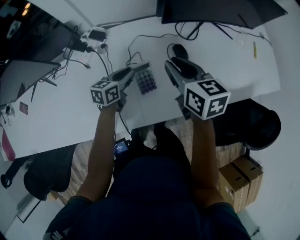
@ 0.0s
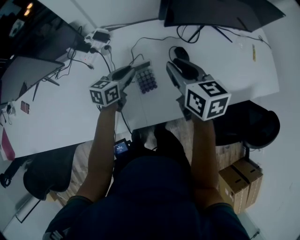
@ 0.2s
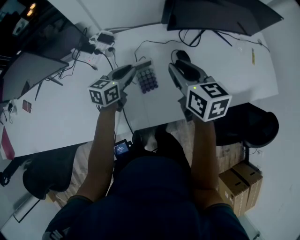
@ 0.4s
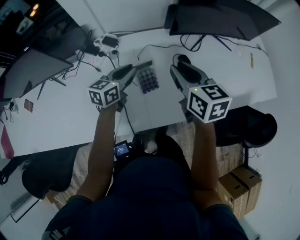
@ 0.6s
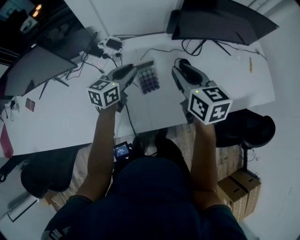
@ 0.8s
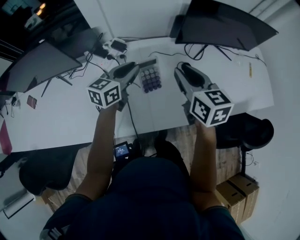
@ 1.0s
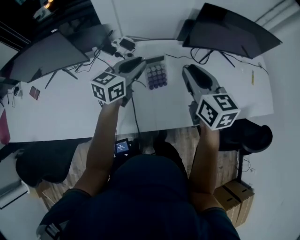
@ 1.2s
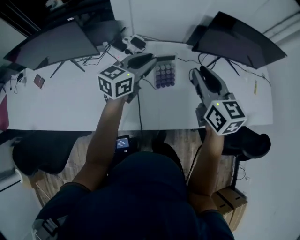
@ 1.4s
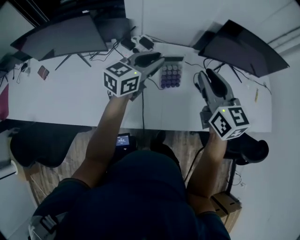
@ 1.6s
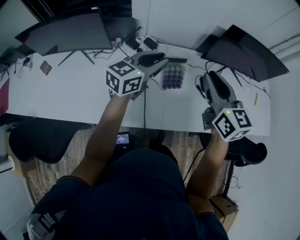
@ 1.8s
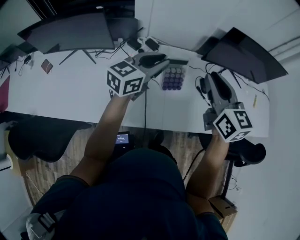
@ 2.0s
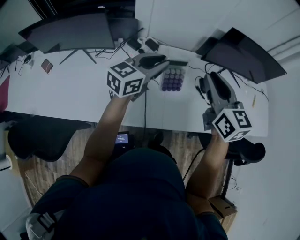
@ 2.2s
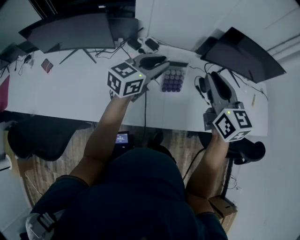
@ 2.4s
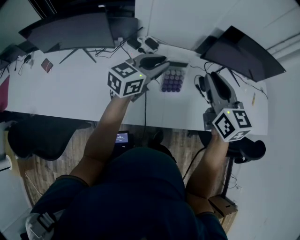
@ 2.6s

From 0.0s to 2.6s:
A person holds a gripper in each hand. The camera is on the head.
From 0.0s to 1.2s: The right gripper moves upward, approximately 10 cm, while the left gripper shifts some 20 cm upward, and changes its angle by approximately 20 degrees.
From 1.2s to 2.6s: The grippers both shift upward and backward by approximately 10 cm.

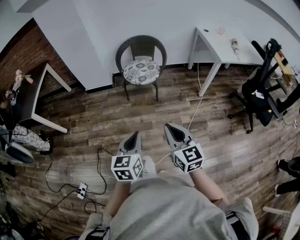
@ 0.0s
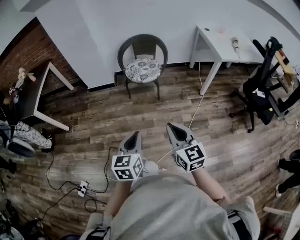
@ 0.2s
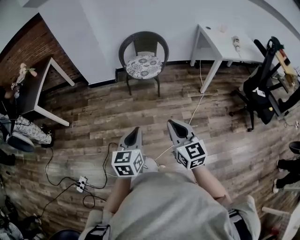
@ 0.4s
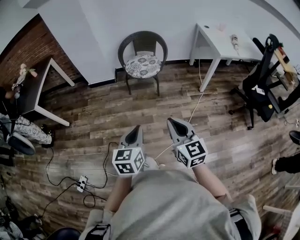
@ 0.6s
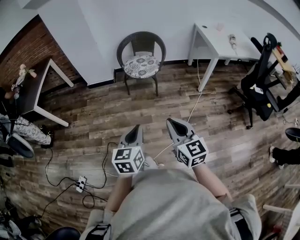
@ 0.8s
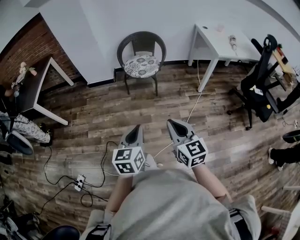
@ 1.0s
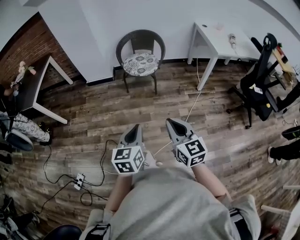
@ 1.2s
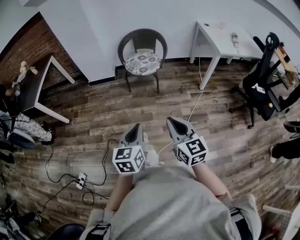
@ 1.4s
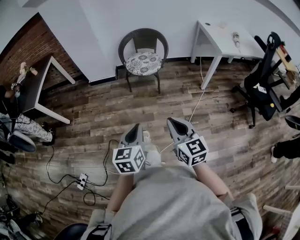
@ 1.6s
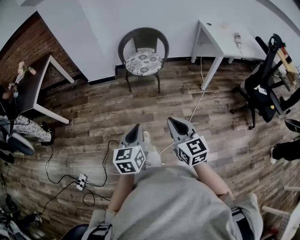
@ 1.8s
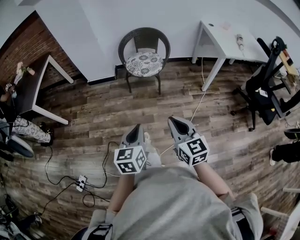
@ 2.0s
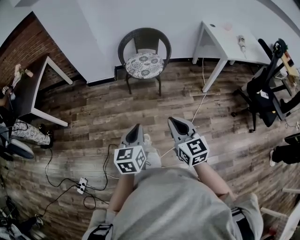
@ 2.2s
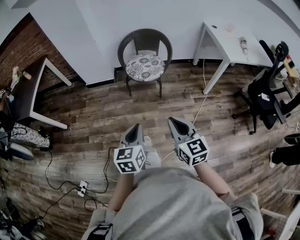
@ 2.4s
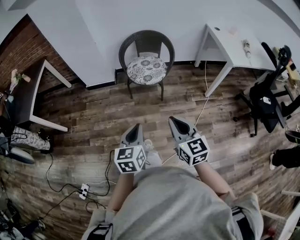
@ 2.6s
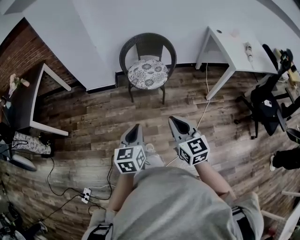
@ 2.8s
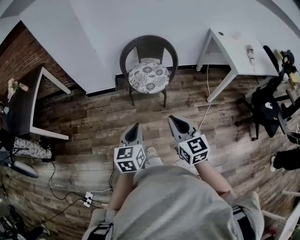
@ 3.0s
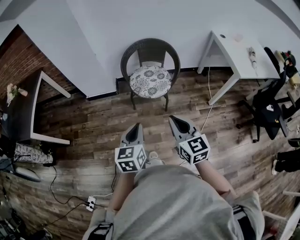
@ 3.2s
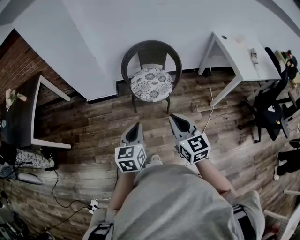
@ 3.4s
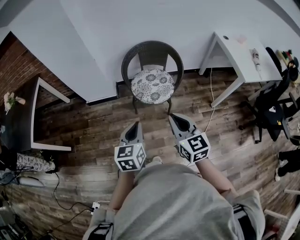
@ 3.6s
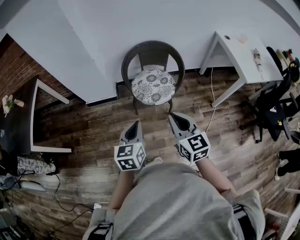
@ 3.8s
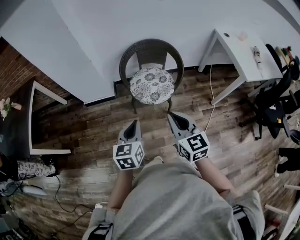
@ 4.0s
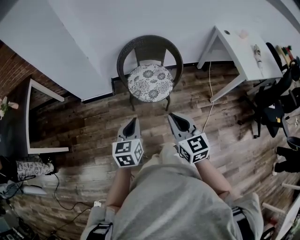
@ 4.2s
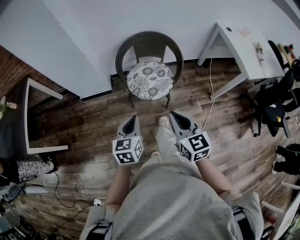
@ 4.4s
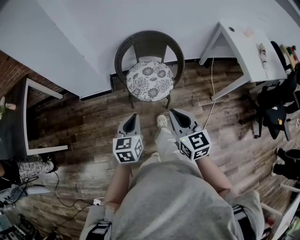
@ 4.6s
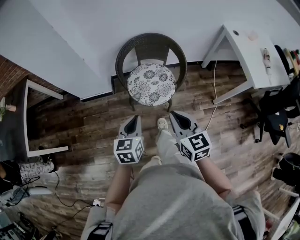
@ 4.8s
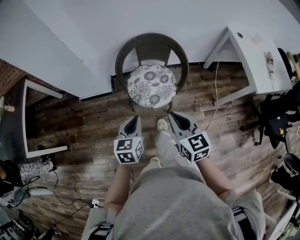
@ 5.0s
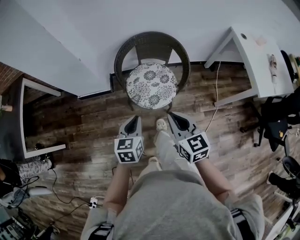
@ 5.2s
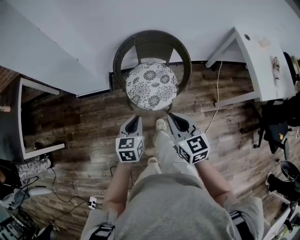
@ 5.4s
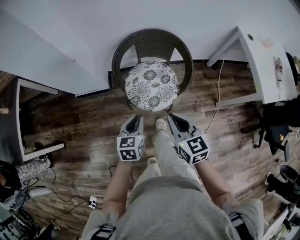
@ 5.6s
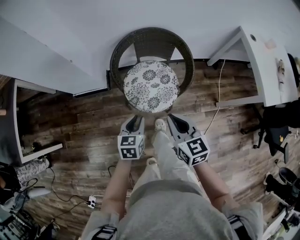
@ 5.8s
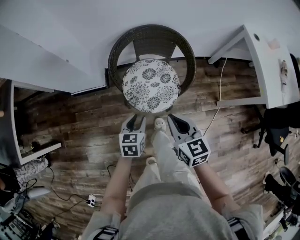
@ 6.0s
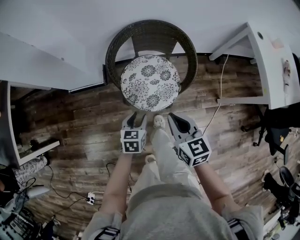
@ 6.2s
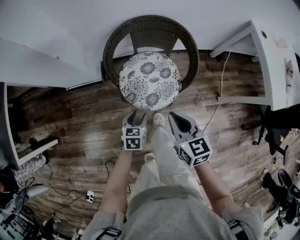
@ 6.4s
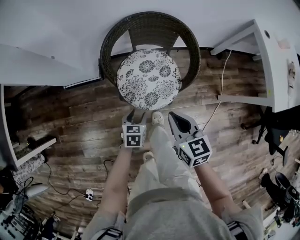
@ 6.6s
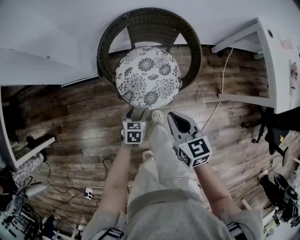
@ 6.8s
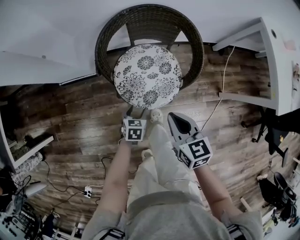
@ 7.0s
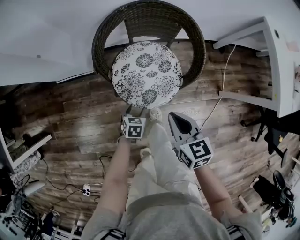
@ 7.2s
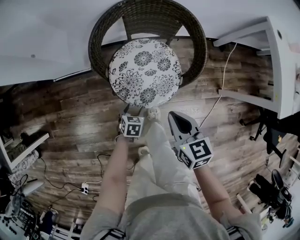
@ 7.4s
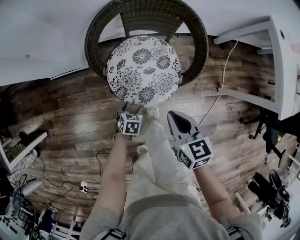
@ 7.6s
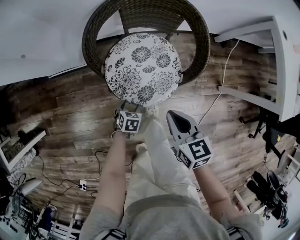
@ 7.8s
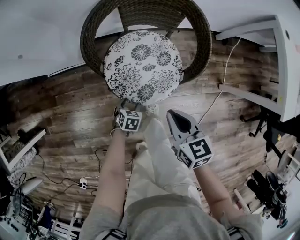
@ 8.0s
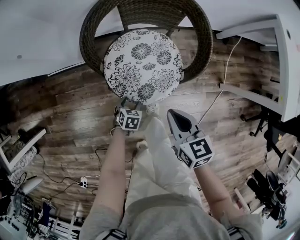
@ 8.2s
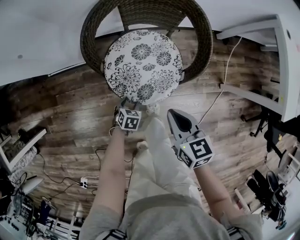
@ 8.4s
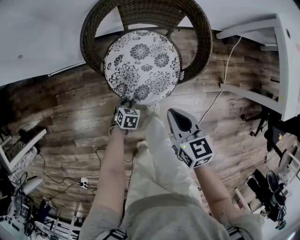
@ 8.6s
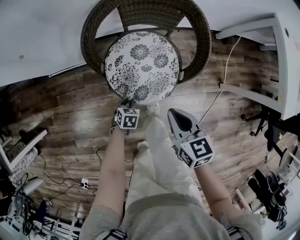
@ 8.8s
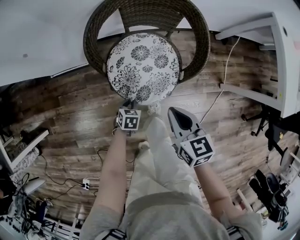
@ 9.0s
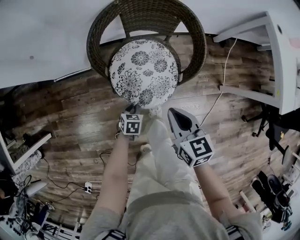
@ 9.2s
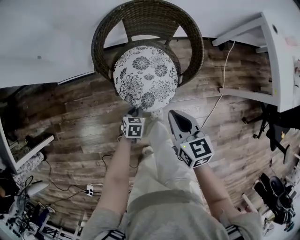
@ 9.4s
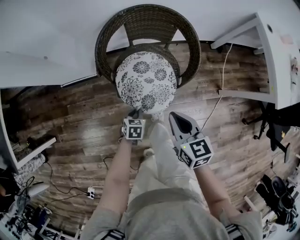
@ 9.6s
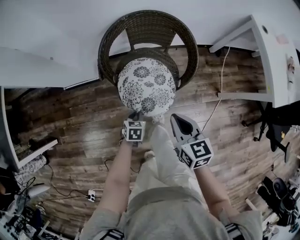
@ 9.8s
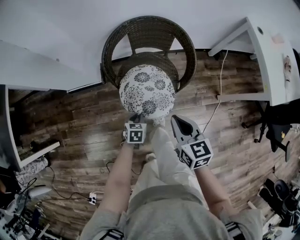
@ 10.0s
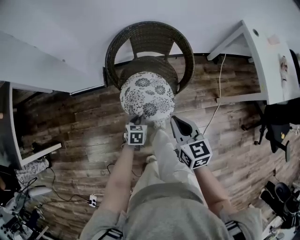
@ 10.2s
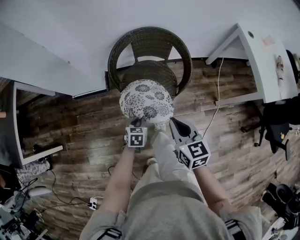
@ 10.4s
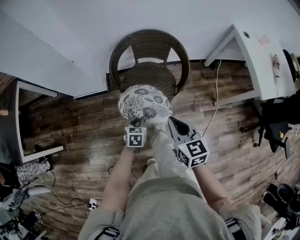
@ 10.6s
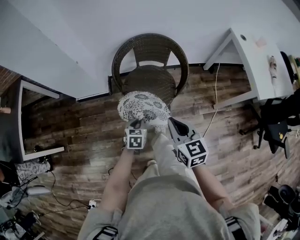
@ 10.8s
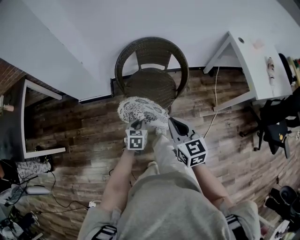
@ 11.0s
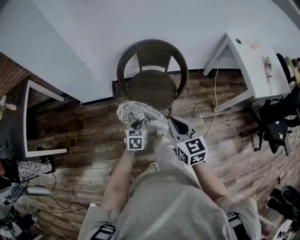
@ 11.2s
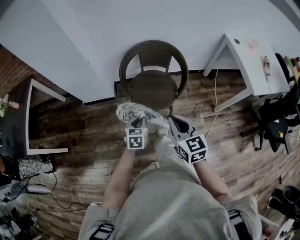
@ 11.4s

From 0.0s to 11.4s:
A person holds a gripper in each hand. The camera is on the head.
From 0.0s to 1.4s: Both grippers travel together backward, approximately 5 cm.
From 1.4s to 2.8s: The grippers both shift forward by approximately 25 cm.
From 2.8s to 4.2s: The two grippers go roughly 25 cm forward.
From 4.2s to 5.6s: Both grippers travel together forward and downward, roughly 25 cm.
From 5.6s to 7.2s: The right gripper shifts some 15 cm downward and forward; the left gripper travels downward by roughly 30 cm, turns by roughly 30 degrees, and opens its fingers.
From 7.2s to 8.6s: The left gripper is displaced downward by about 10 cm, and closes. Meanwhile the right gripper travels downward by some 5 cm.
From 8.6s to 10.0s: The right gripper travels upward and backward by about 15 cm. Meanwhile the left gripper shifts about 15 cm upward.
From 10.0s to 11.4s: The left gripper goes approximately 25 cm upward and backward, while the right gripper travels backward and upward by approximately 20 cm.

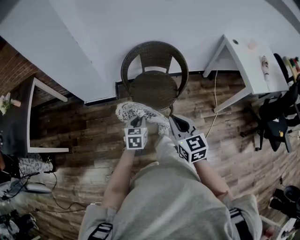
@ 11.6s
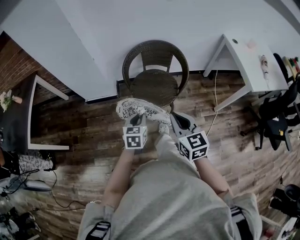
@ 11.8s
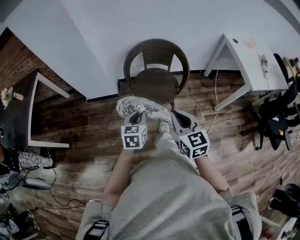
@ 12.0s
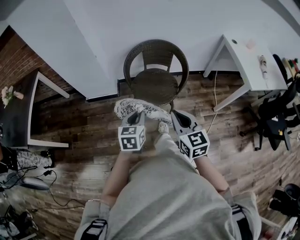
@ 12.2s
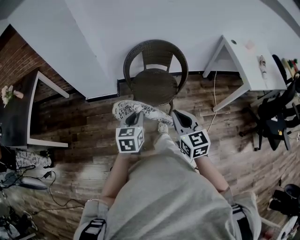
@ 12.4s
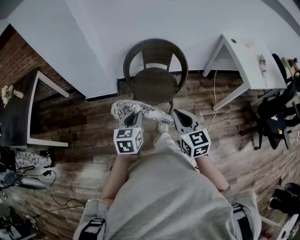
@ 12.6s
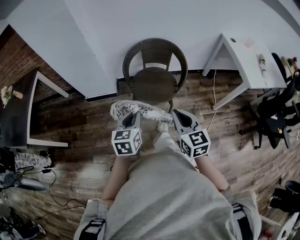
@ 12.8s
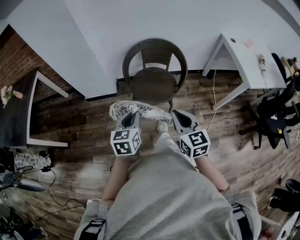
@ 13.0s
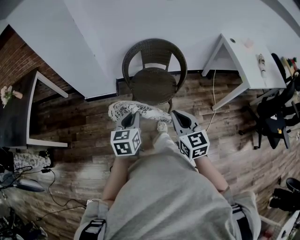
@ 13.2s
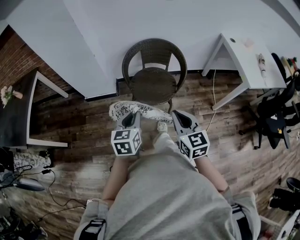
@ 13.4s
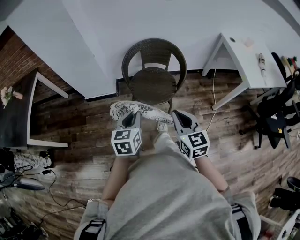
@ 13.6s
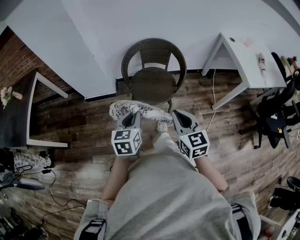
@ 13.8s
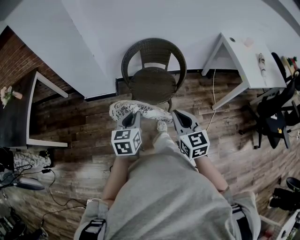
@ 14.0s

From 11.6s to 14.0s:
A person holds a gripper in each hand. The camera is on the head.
From 11.6s to 12.8s: The right gripper travels backward by some 5 cm. The left gripper heads upward and backward, covering roughly 15 cm.
From 12.8s to 14.0s: Both grippers stay put.

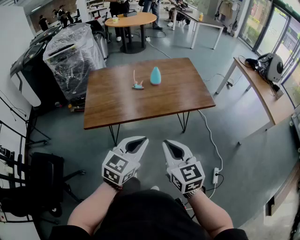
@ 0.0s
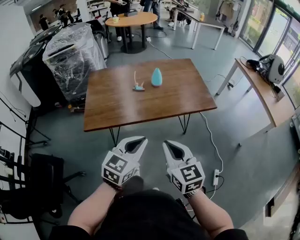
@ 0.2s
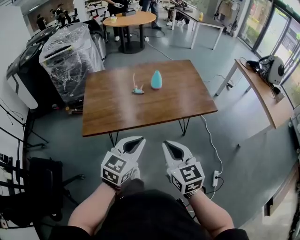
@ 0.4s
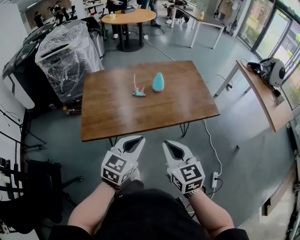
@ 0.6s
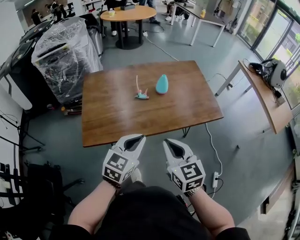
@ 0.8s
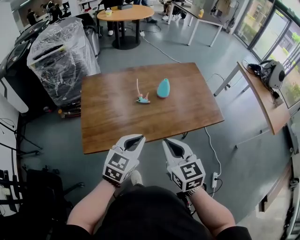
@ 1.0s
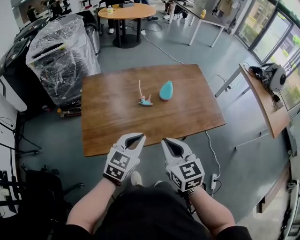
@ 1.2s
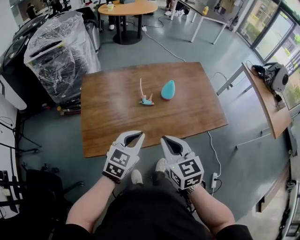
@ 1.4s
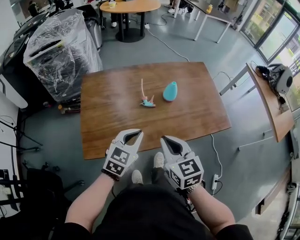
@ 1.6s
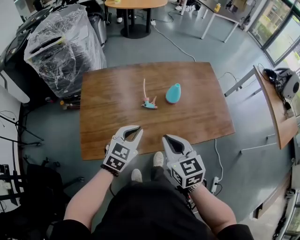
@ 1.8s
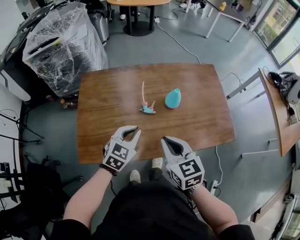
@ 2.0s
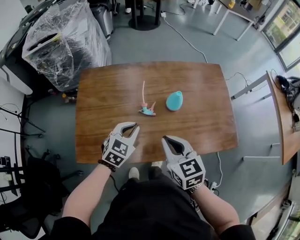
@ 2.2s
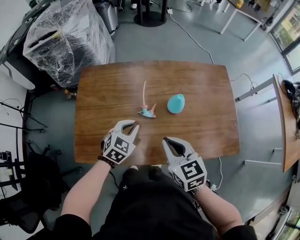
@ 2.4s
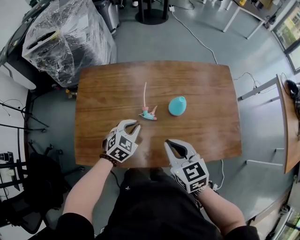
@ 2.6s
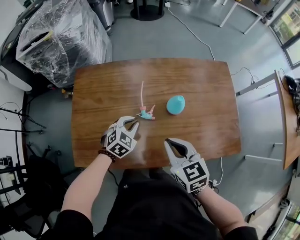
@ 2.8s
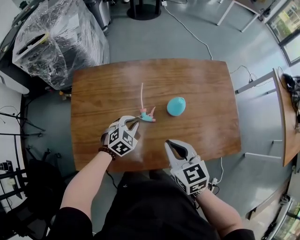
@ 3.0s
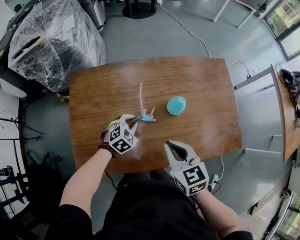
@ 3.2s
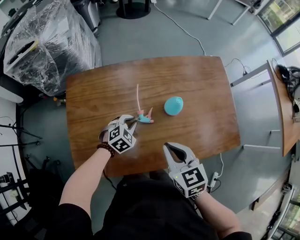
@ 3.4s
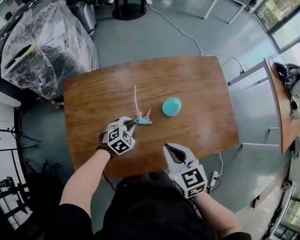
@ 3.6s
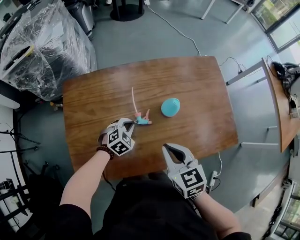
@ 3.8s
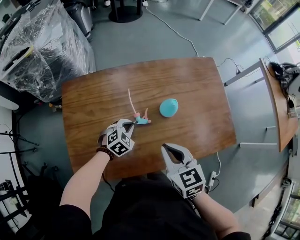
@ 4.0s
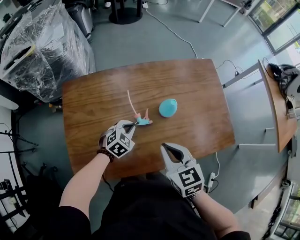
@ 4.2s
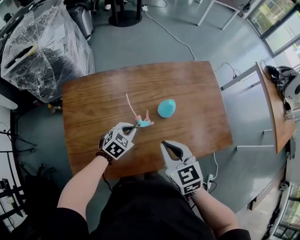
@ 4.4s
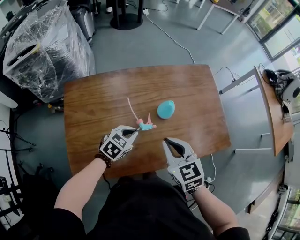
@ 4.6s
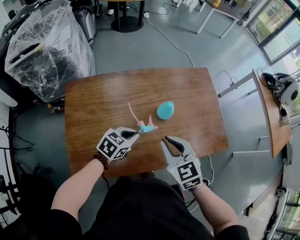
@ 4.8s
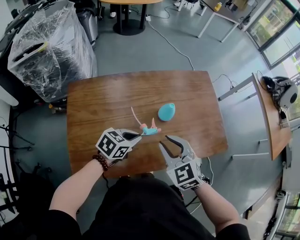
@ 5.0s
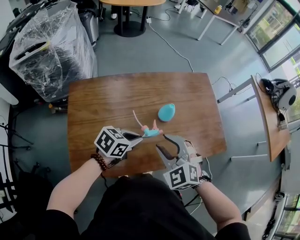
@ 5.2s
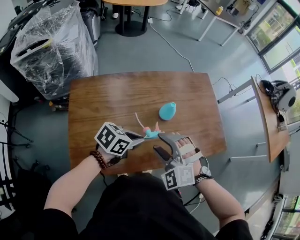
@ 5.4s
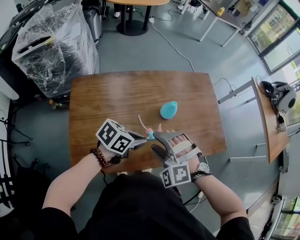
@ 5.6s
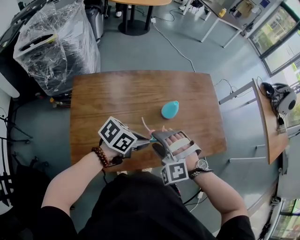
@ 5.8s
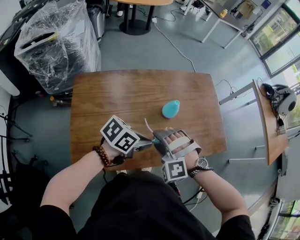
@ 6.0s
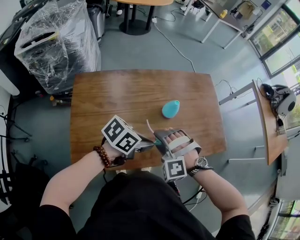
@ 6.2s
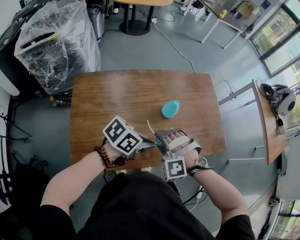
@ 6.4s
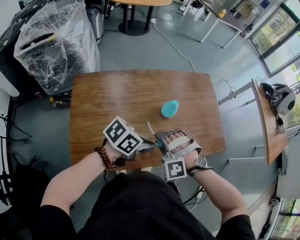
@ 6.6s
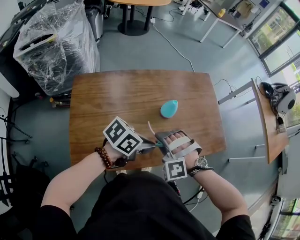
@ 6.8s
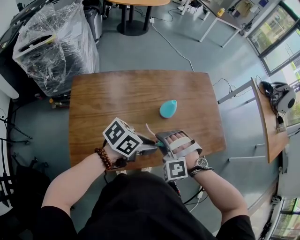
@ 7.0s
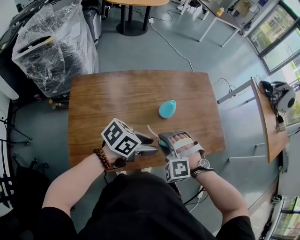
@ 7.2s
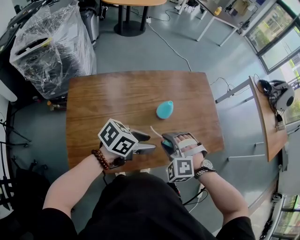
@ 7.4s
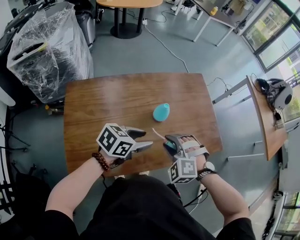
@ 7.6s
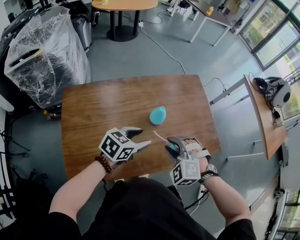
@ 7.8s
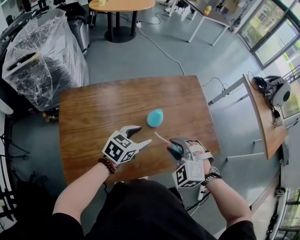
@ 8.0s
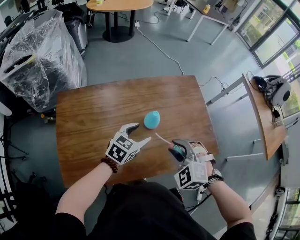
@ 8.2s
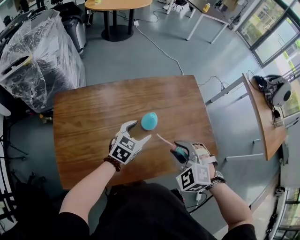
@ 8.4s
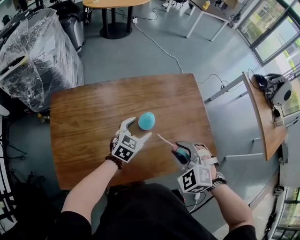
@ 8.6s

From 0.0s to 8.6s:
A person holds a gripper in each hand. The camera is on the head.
From 0.0s to 1.4s: Both grippers move forward and to the left, some 25 cm.
From 1.4s to 2.8s: The right gripper heads forward and downward, covering about 15 cm. Meanwhile the left gripper goes some 25 cm forward and downward, and swivels roughly 30 degrees.
From 2.8s to 4.4s: There are only small adjustments of the grippers.
From 4.4s to 5.8s: The left gripper is displaced upward, backward and to the right by some 15 cm, and turns by roughly 40 degrees; the right gripper moves some 5 cm, rotates around the line of its fingers by about 80 degrees, counterclockwise from behind, and opens up.
From 5.8s to 7.2s: The right gripper closes up. The left gripper opens up.
From 7.2s to 8.6s: The left gripper heads forward and downward, covering approximately 20 cm, turns by roughly 50 degrees, and opens up. The right gripper heads to the right and forward, covering roughly 15 cm, and changes its angle by some 30 degrees.
